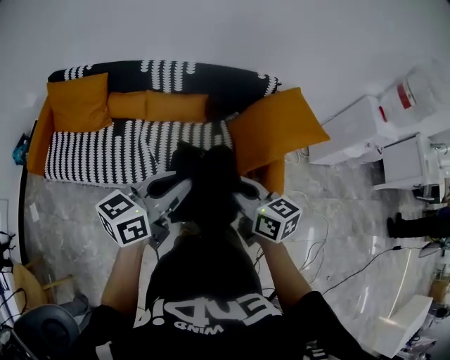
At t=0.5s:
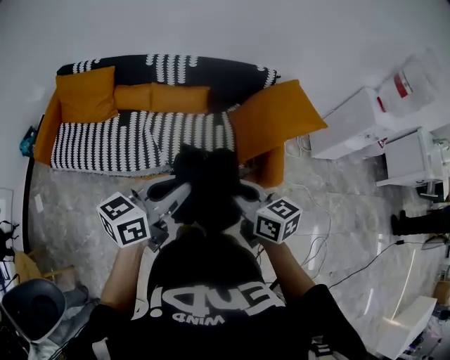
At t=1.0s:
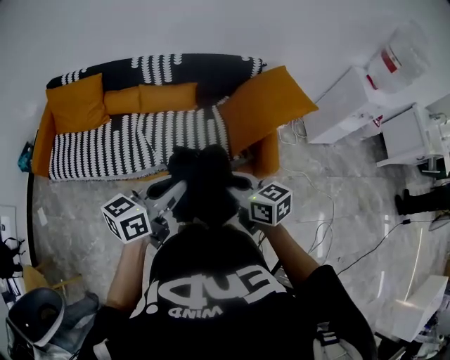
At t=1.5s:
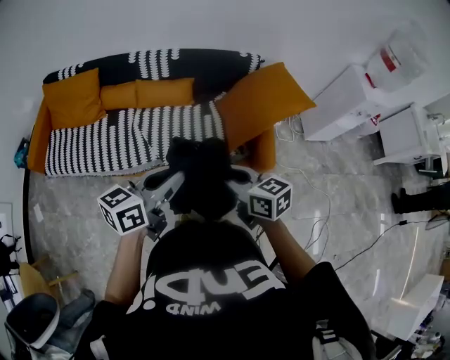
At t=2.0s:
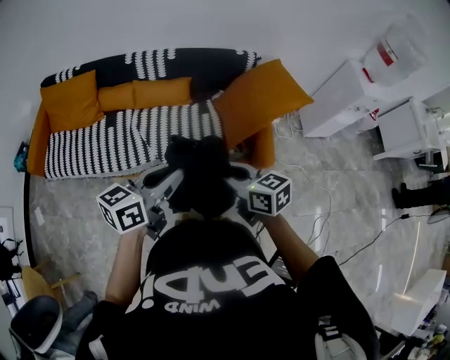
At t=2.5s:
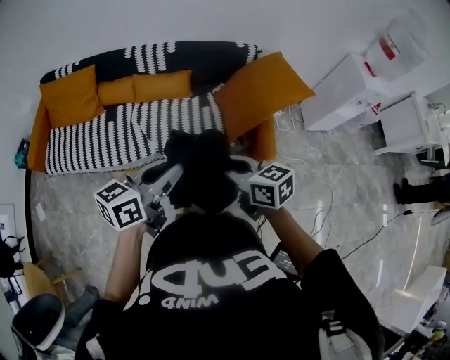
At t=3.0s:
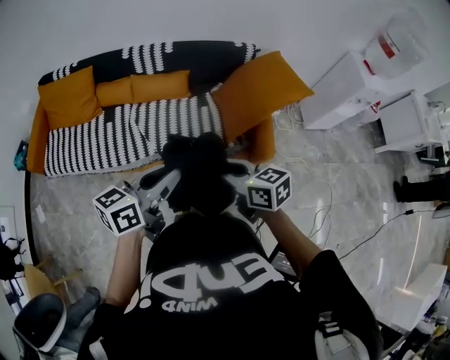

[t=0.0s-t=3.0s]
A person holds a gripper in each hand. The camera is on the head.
t=0.0s to t=1.5s: The right gripper shifts about 10 cm backward. Meanwhile the left gripper moves backward and to the right, roughly 10 cm.
t=1.5s to t=3.0s: Neither gripper changes place.

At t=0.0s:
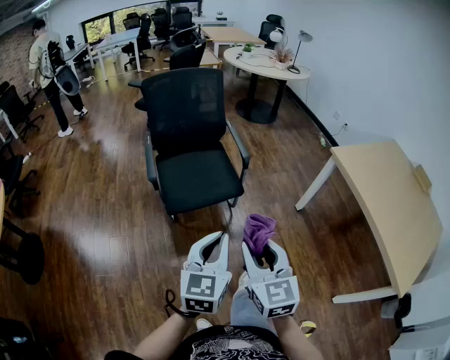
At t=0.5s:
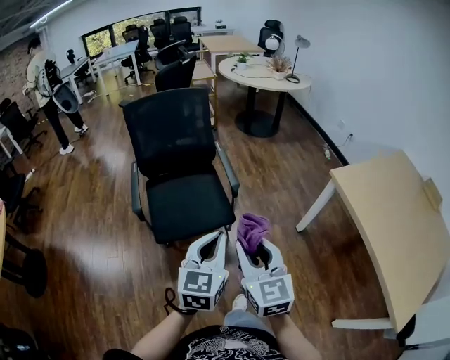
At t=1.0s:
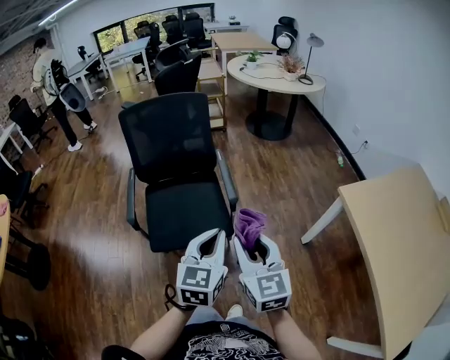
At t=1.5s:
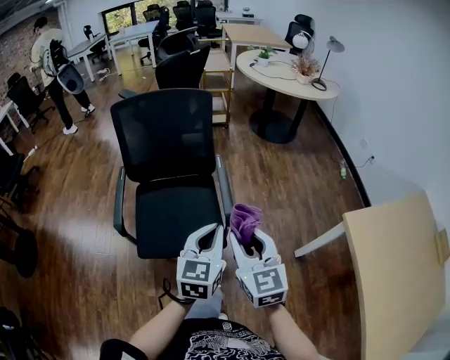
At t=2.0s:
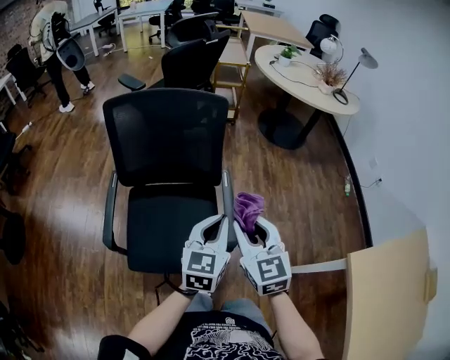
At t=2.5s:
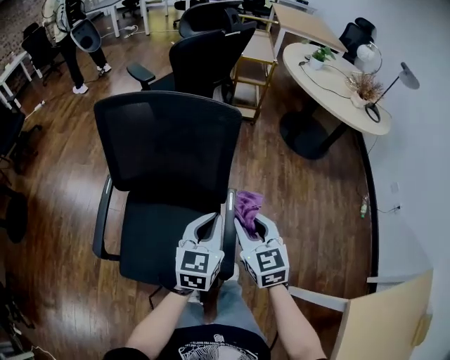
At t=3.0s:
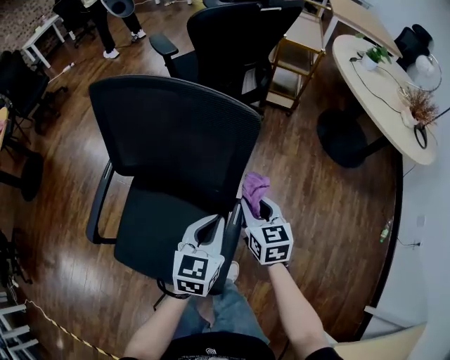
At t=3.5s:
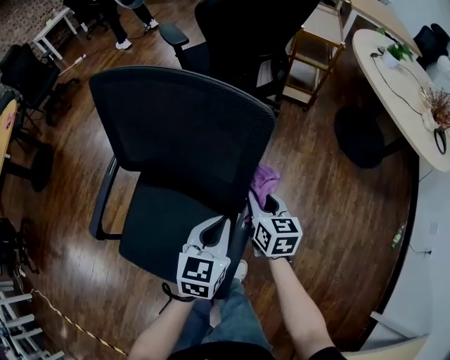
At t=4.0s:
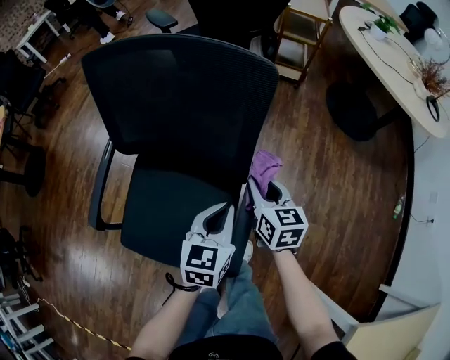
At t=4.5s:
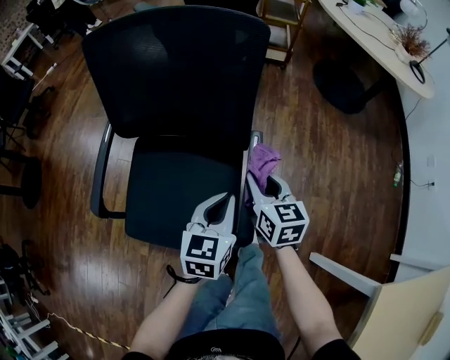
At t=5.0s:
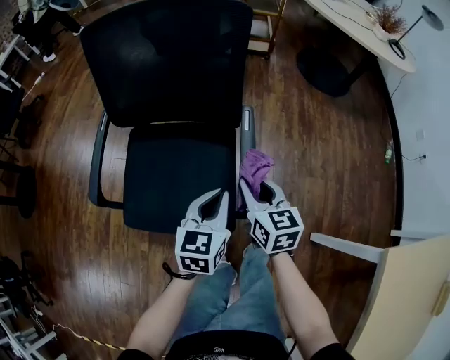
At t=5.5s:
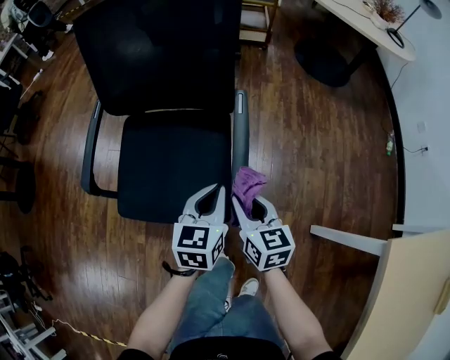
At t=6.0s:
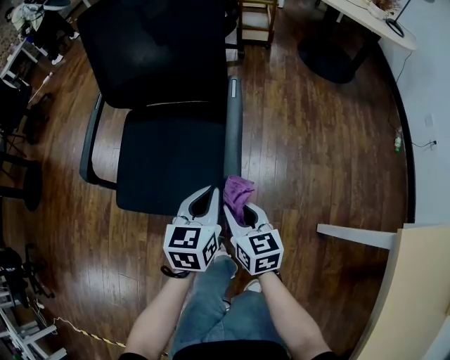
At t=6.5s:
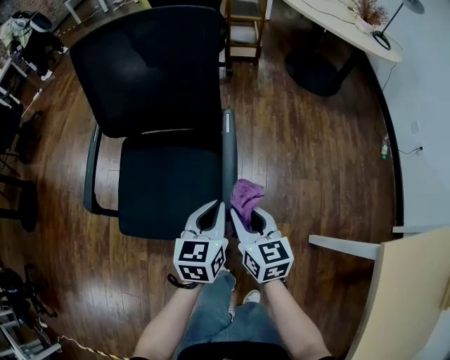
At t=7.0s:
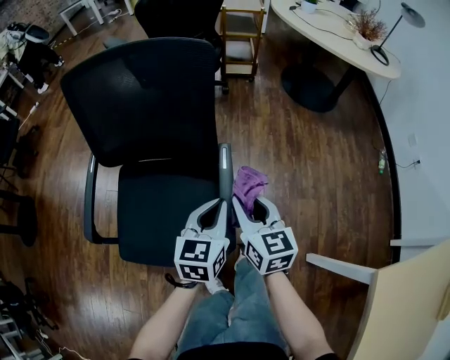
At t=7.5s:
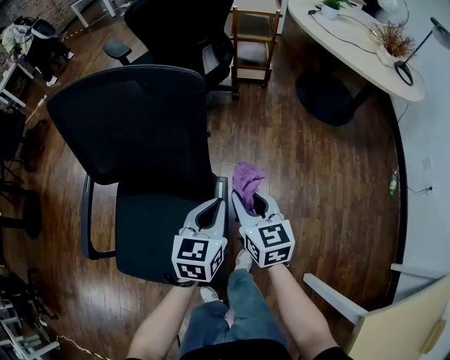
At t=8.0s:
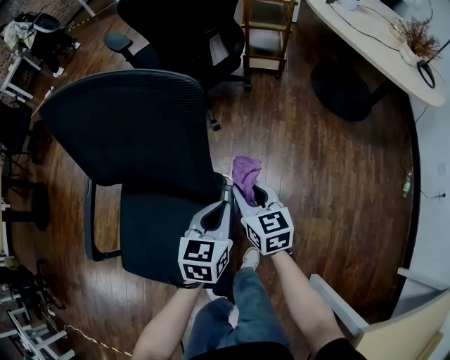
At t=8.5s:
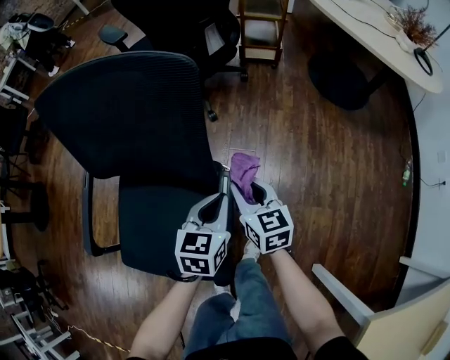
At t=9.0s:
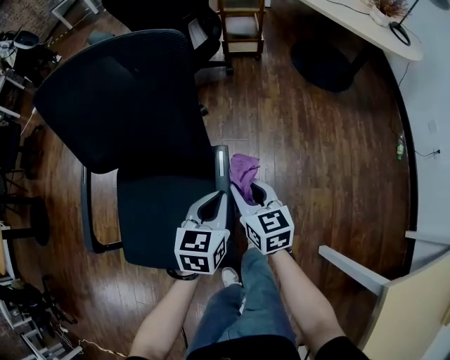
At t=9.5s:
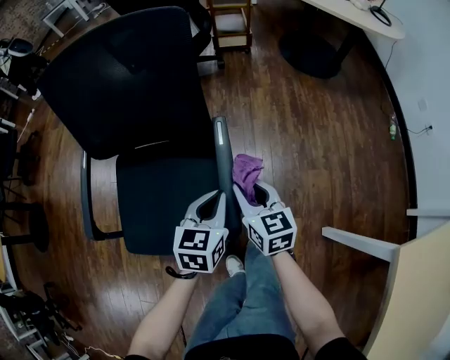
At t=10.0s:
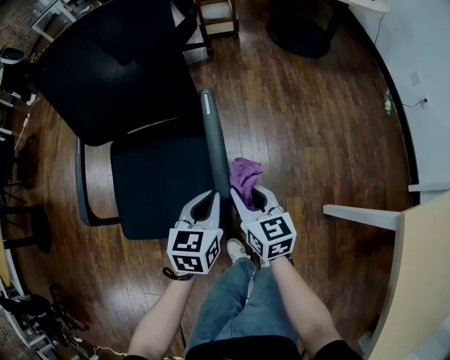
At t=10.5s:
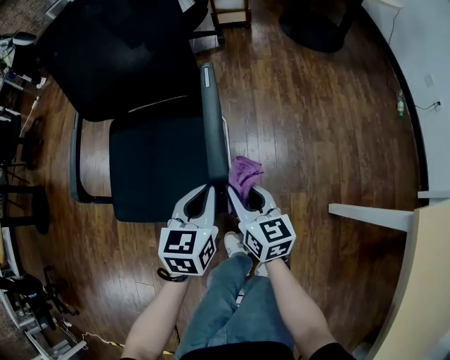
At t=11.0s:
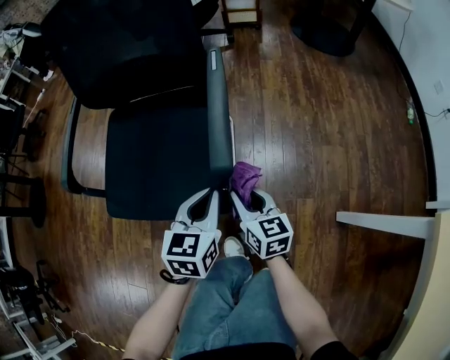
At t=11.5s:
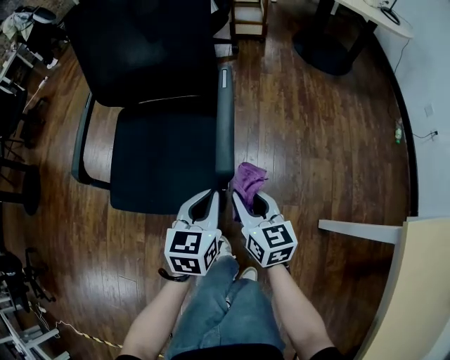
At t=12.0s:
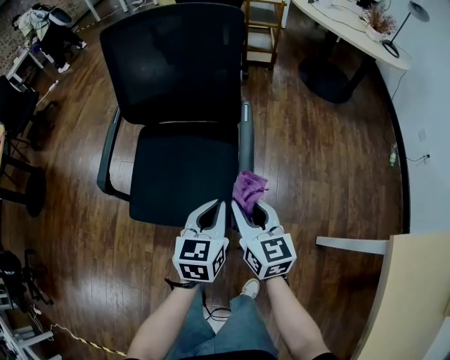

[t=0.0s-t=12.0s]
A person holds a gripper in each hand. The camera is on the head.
t=0.0s to t=2.0s: The two grippers travel together, forward, about 60 cm. The right gripper swivels some 20 degrees.
t=2.0s to t=4.0s: The right gripper is displaced forward and downward by roughly 35 cm, and swivels about 30 degrees. The left gripper heads downward and forward, covering about 25 cm, and rotates some 20 degrees.
t=4.0s to t=6.0s: The right gripper moves backward, roughly 35 cm. Meanwhile the left gripper moves backward, approximately 25 cm.
t=6.0s to t=8.0s: The grippers both shift forward by roughly 35 cm.
t=8.0s to t=10.0s: Both grippers move backward, about 25 cm.
t=10.0s to t=12.0s: The left gripper heads backward, upward and to the left, covering about 10 cm. The right gripper heads upward, to the left and backward, covering about 10 cm.

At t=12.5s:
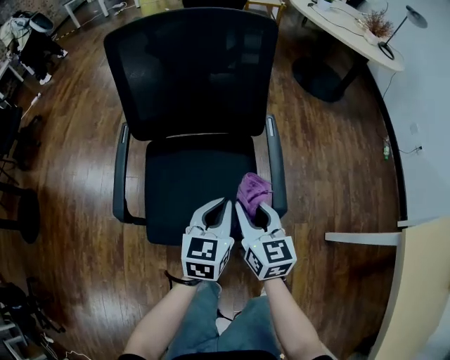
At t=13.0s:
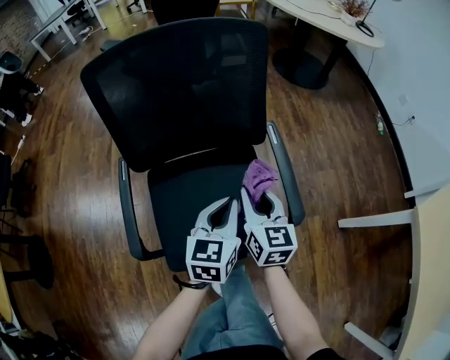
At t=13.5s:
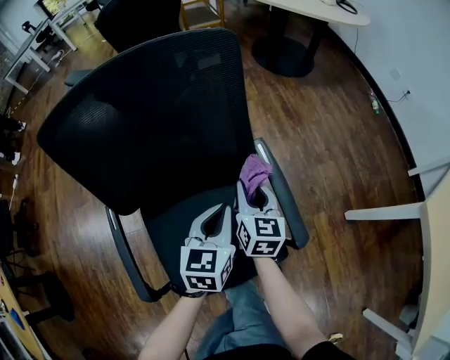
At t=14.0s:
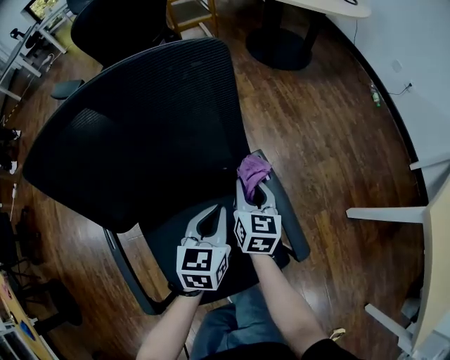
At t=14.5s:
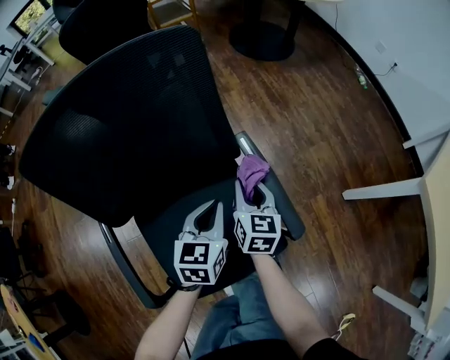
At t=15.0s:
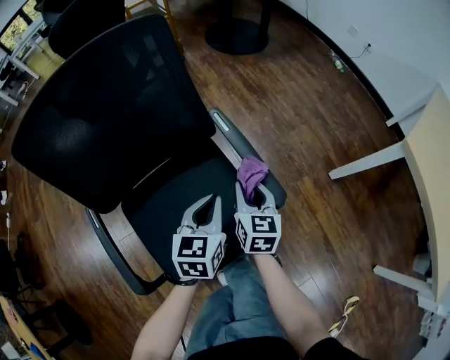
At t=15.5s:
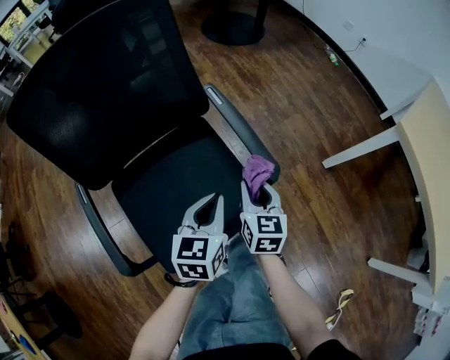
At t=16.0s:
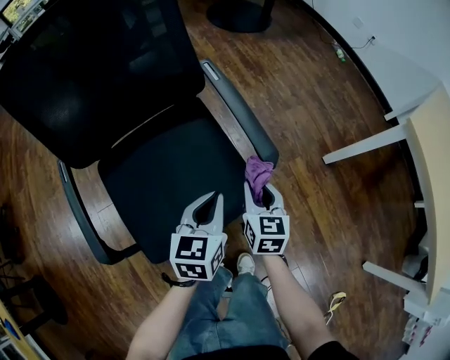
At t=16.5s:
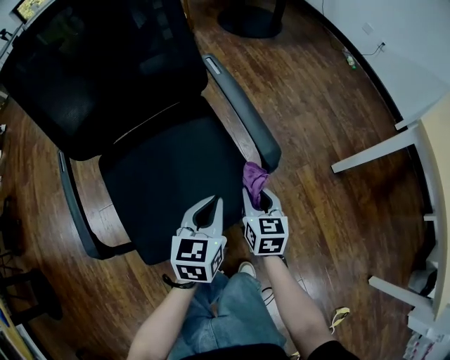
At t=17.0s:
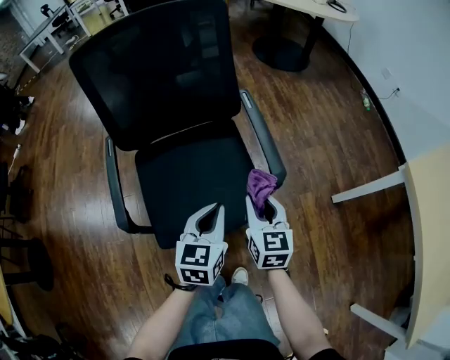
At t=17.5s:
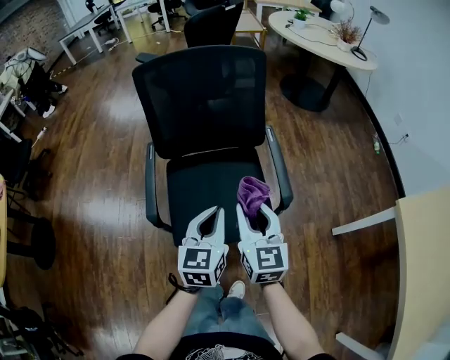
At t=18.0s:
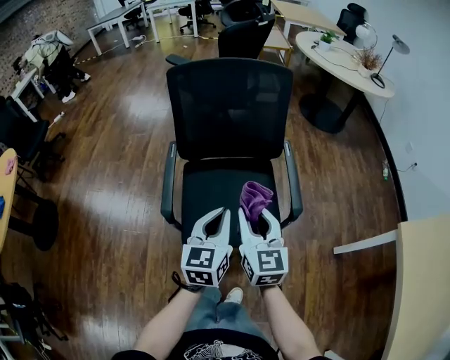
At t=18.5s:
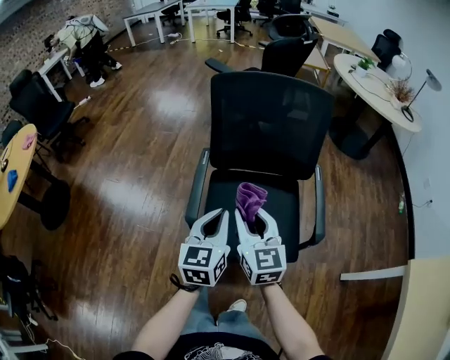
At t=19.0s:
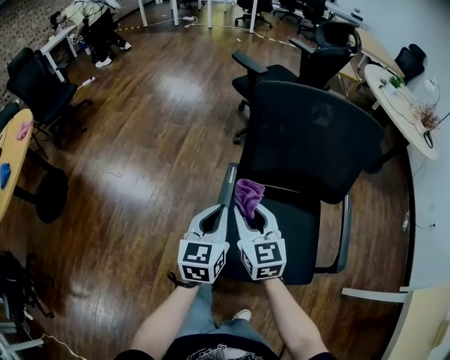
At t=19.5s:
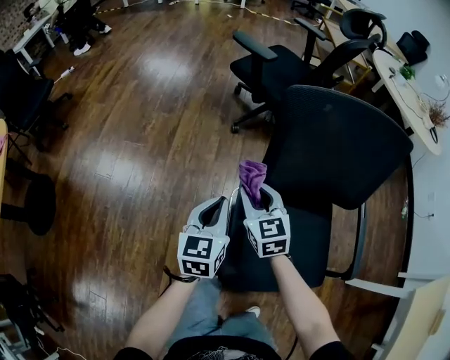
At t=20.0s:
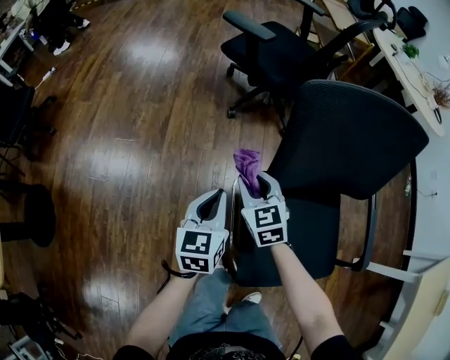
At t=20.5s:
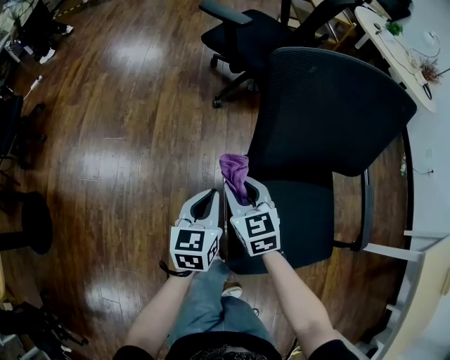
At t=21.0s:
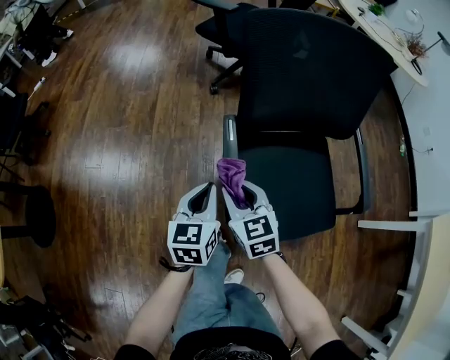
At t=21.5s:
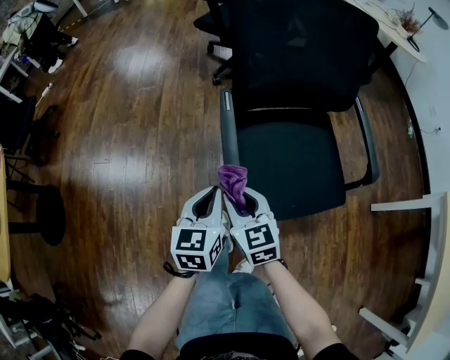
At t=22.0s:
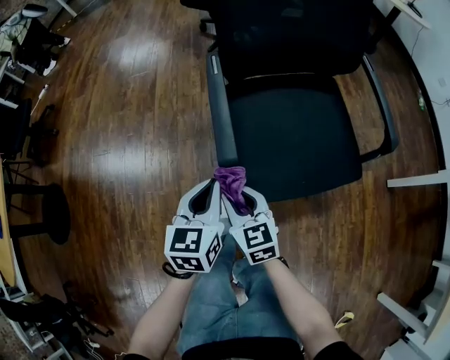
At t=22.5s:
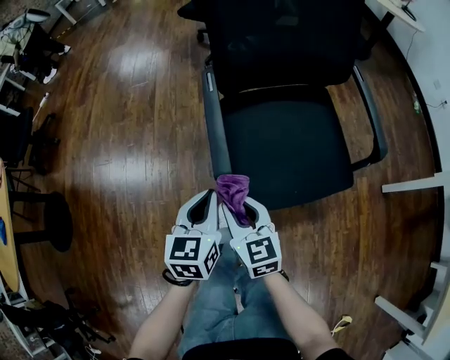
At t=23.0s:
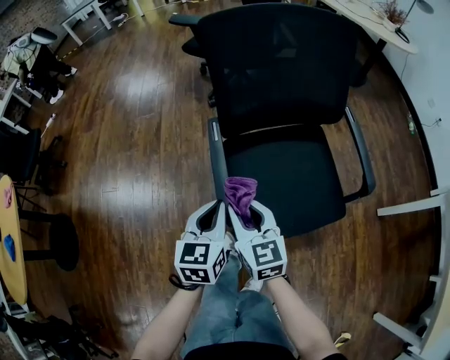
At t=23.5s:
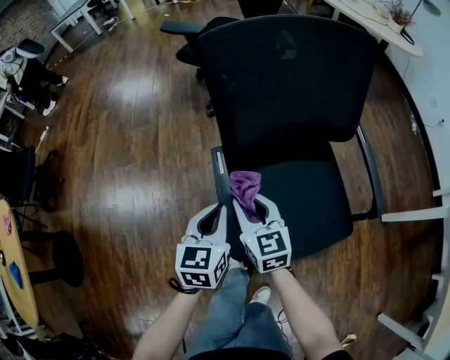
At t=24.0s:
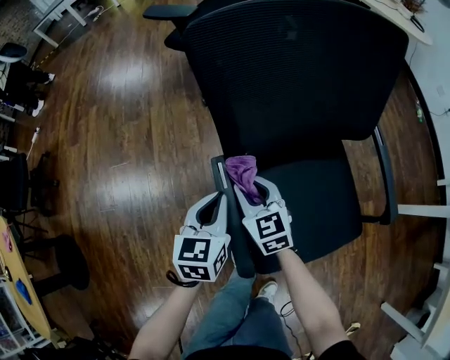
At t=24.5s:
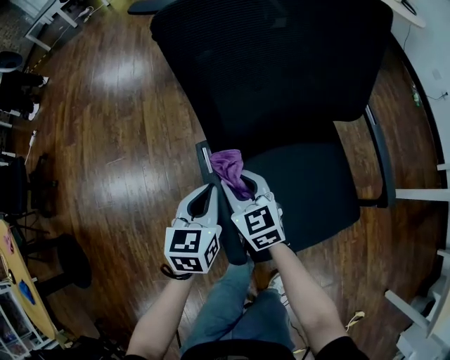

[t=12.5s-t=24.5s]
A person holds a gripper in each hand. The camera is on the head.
t=12.5s to t=14.5s: The right gripper shifts by roughly 20 cm, and turns by approximately 40 degrees. Meanwhile the left gripper changes place by approximately 15 cm, and turns by roughly 20 degrees.
t=14.5s to t=16.5s: The left gripper moves backward, to the right and downward, roughly 25 cm. Meanwhile the right gripper moves backward, downward and to the right, about 30 cm.
t=16.5s to t=18.5s: The two grippers go roughly 30 cm upward. The right gripper rotates roughly 50 degrees, while the left gripper changes its angle by approximately 40 degrees.
t=18.5s to t=20.5s: Both grippers travel together forward, to the left and downward, roughly 35 cm. The right gripper turns by about 20 degrees.
t=20.5s to t=22.5s: The two grippers go approximately 30 cm backward.
t=22.5s to t=24.5s: Both grippers move forward, roughly 25 cm.
